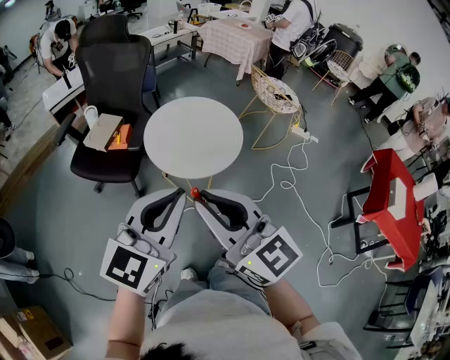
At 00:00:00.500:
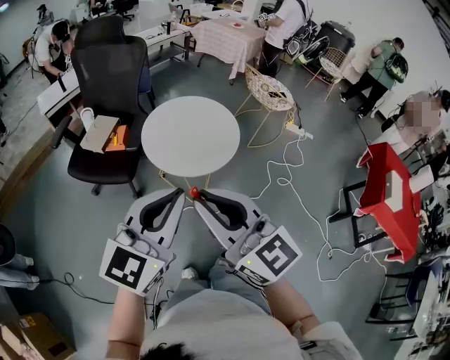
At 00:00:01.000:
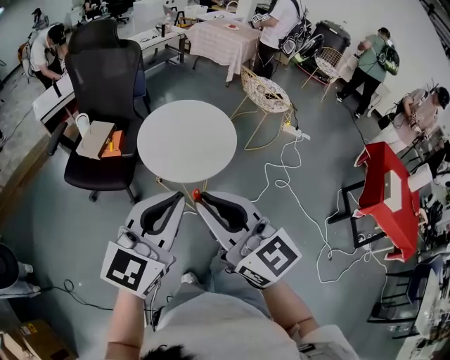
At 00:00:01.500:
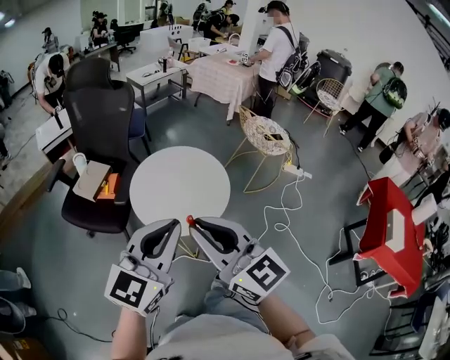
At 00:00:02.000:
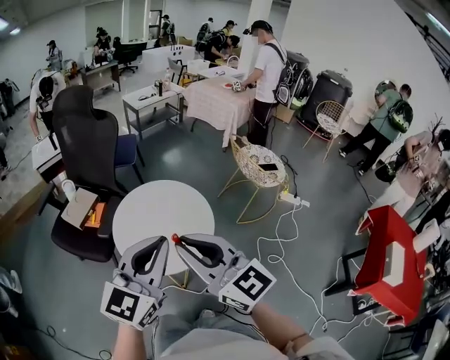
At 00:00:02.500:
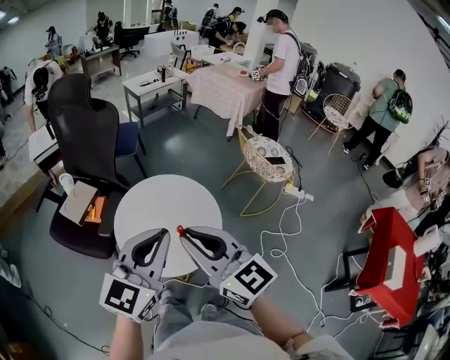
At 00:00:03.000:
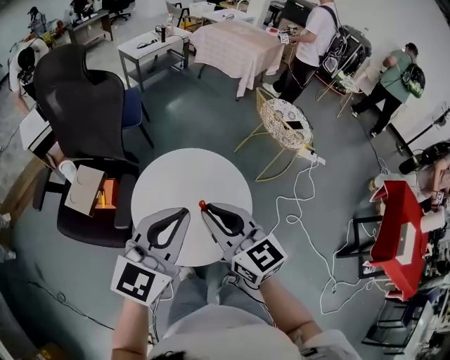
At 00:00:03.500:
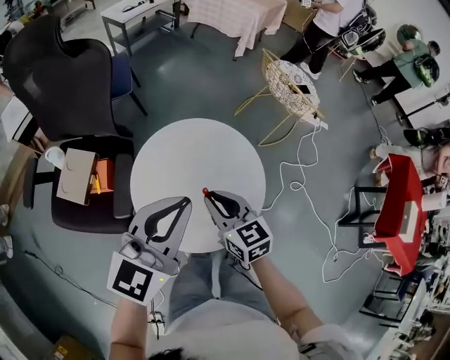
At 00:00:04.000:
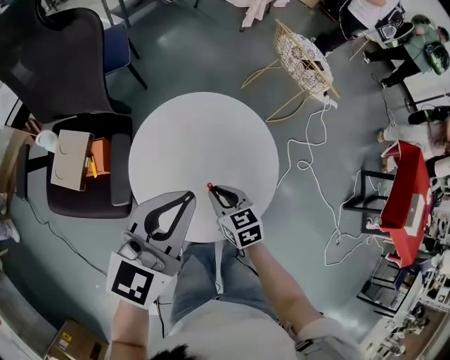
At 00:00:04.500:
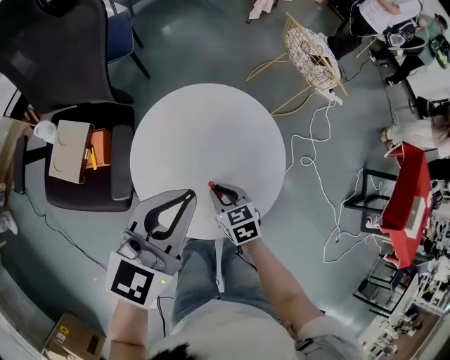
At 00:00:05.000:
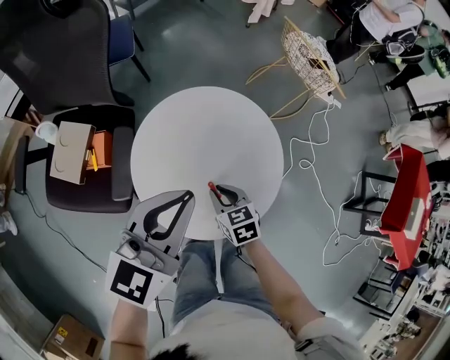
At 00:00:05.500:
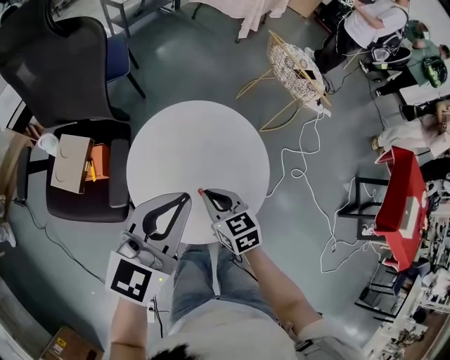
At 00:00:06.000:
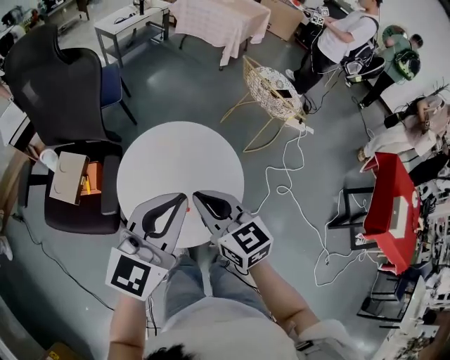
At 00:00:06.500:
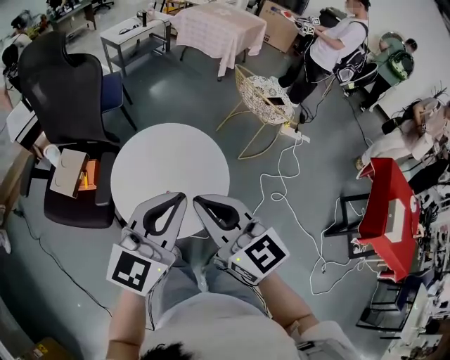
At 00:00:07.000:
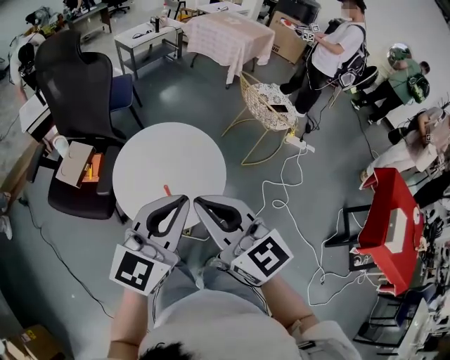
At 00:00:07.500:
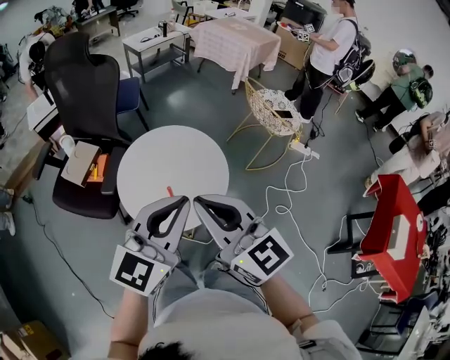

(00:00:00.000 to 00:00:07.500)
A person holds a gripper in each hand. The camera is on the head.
00:00:00.000 - 00:00:02.000: Both grippers travel together forward and to the right, roughly 25 cm.
00:00:02.000 - 00:00:04.000: The left gripper travels forward, downward and to the left by about 25 cm, and rotates roughly 20 degrees. The right gripper shifts about 40 cm downward and forward, and points its fingers roughly 50 degrees further downward.
00:00:04.000 - 00:00:05.500: The right gripper goes some 5 cm upward.
00:00:05.500 - 00:00:07.500: The left gripper travels backward, to the right and upward by about 20 cm, while the right gripper heads upward and backward, covering approximately 35 cm, and tips its fingers upward by roughly 40 degrees.

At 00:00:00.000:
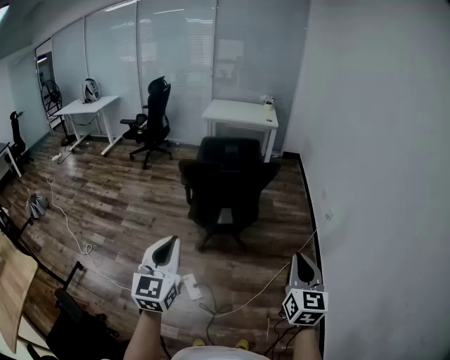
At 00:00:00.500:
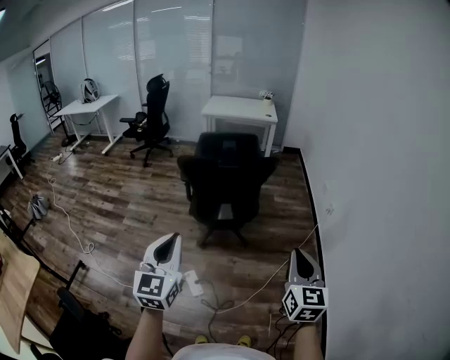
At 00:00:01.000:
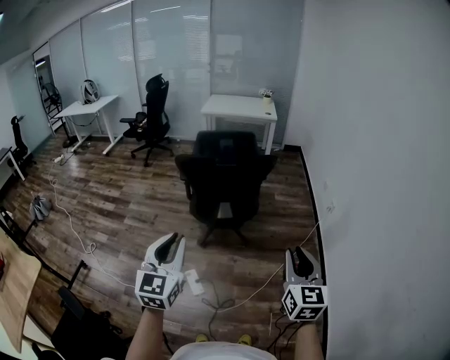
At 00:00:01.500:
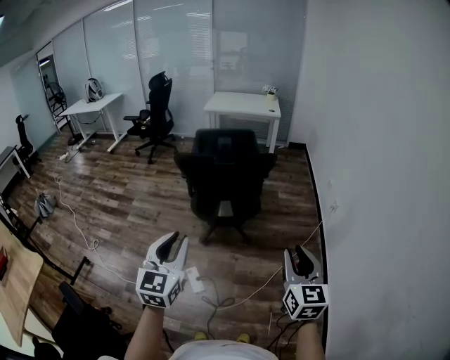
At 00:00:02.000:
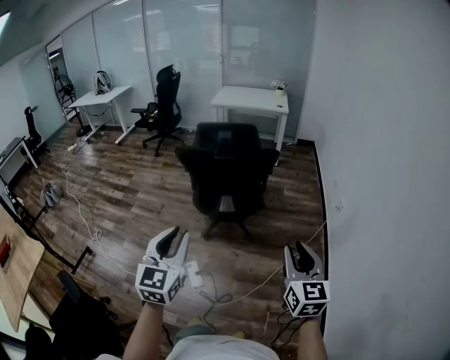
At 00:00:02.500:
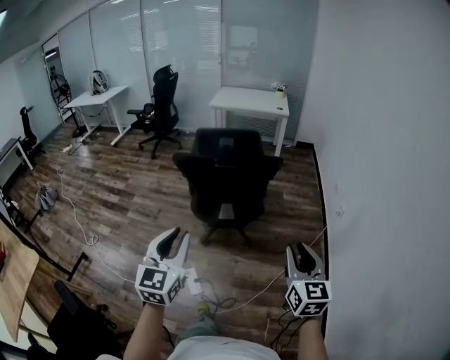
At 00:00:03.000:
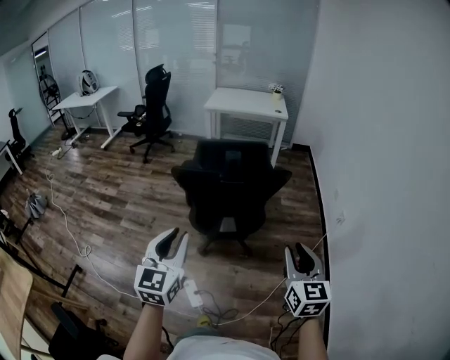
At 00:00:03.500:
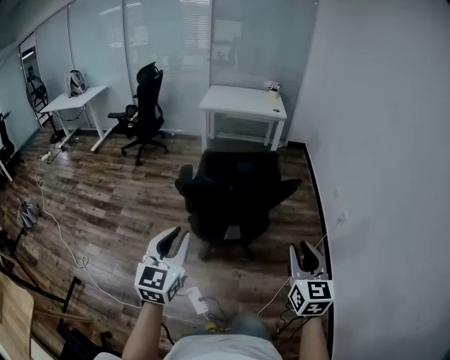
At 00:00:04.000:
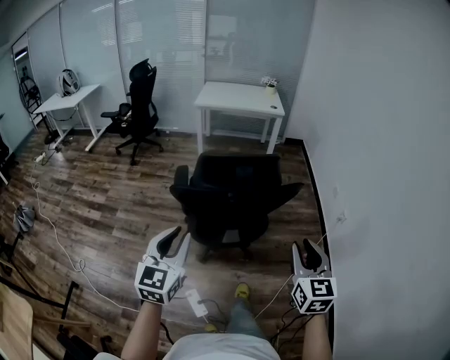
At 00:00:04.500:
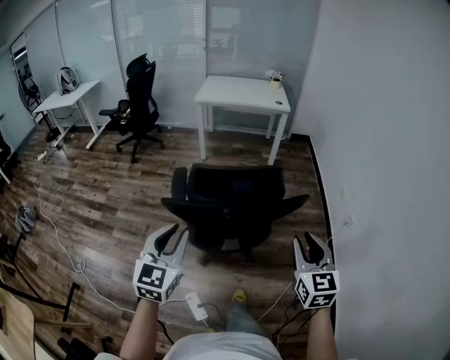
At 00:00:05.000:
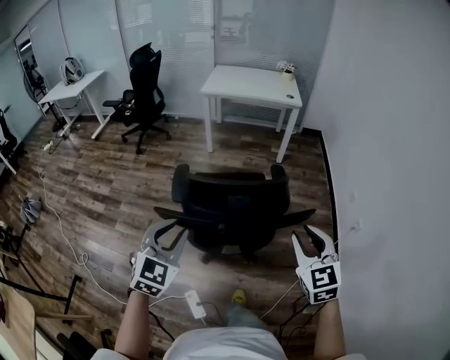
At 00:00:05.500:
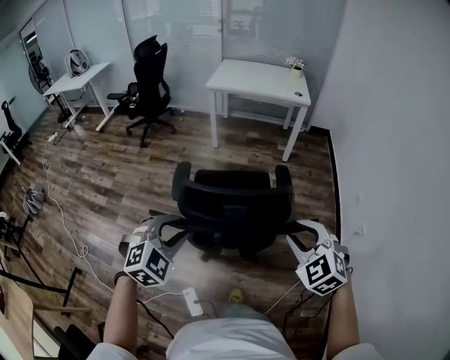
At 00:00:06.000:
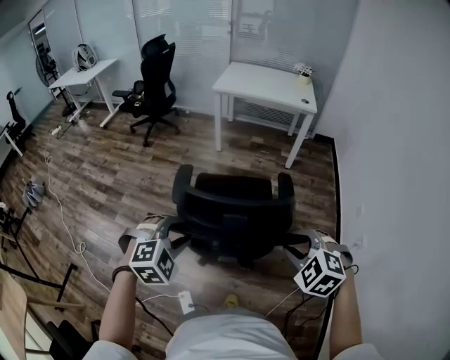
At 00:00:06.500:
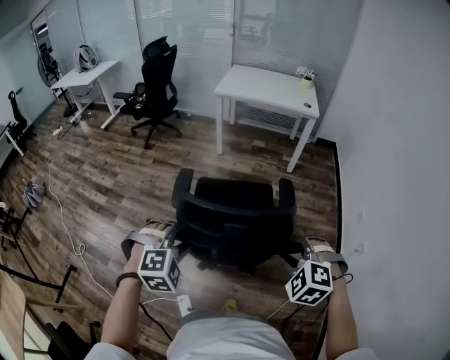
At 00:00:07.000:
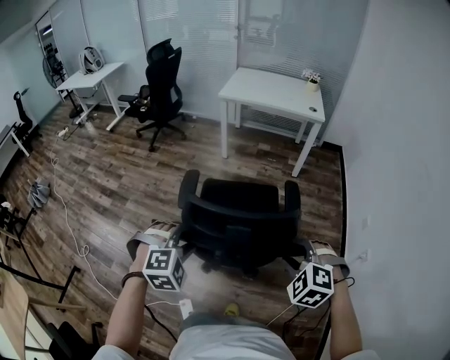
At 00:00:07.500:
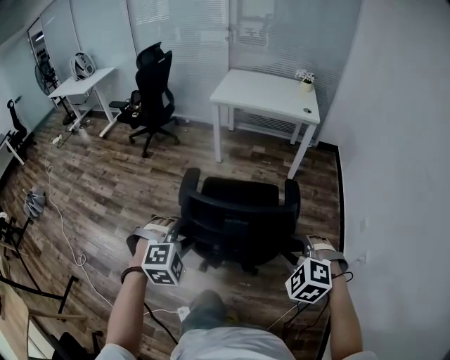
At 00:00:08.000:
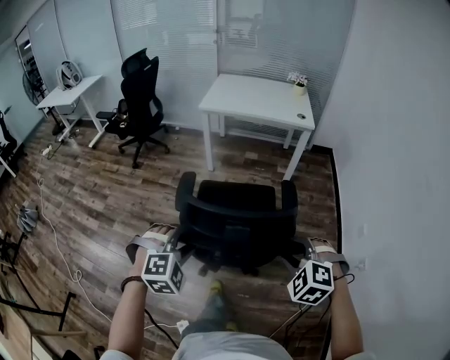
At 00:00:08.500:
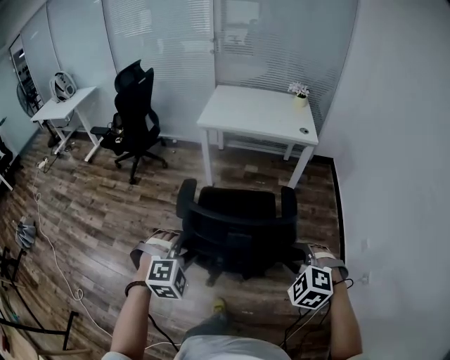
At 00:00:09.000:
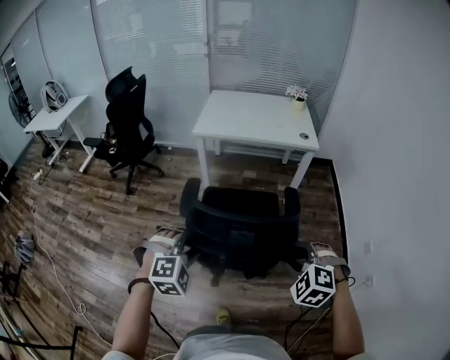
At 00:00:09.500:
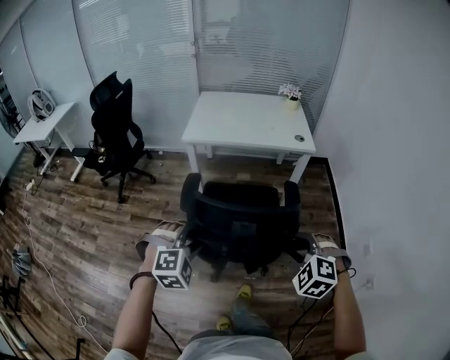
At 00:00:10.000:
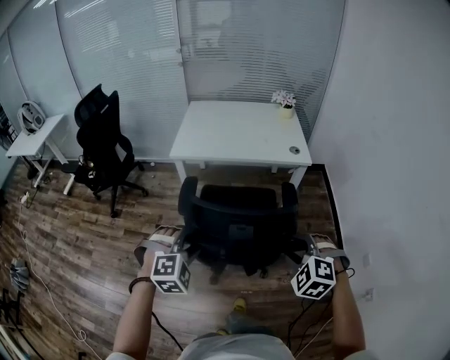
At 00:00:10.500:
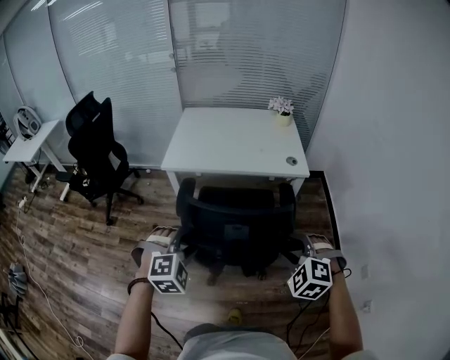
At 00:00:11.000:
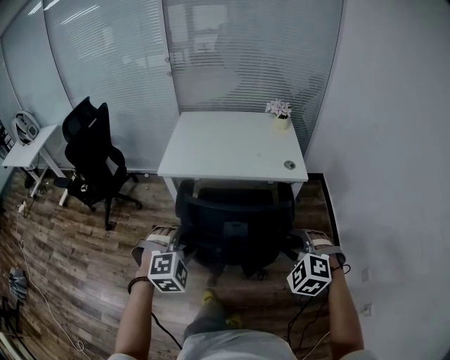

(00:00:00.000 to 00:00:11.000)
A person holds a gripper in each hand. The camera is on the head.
00:00:00.000 - 00:00:02.000: Both grippers move to the right, about 10 cm. The right gripper opens its fingers.
00:00:02.000 - 00:00:03.500: Both grippers move forward and to the left, roughly 30 cm.
00:00:03.500 - 00:00:05.500: The grippers both shift forward by roughly 30 cm. The right gripper rotates approximately 60 degrees; the left gripper tips its fingers downward by approximately 30 degrees.
00:00:05.500 - 00:00:07.500: The right gripper travels forward and downward by roughly 15 cm, and turns by approximately 20 degrees; the left gripper is displaced forward by some 15 cm, and swivels roughly 20 degrees.
00:00:07.500 - 00:00:09.000: Both grippers travel together forward, some 30 cm.
00:00:09.000 - 00:00:11.000: Both grippers move forward, approximately 35 cm.

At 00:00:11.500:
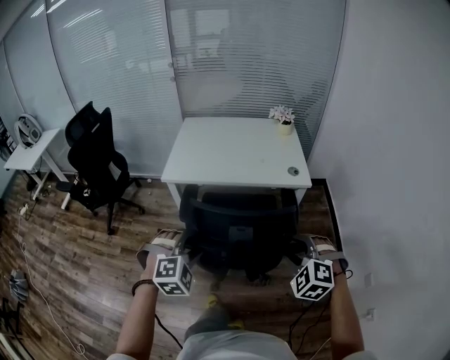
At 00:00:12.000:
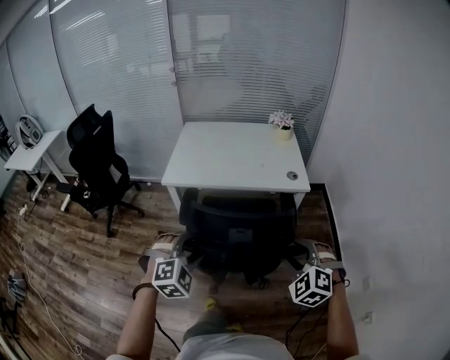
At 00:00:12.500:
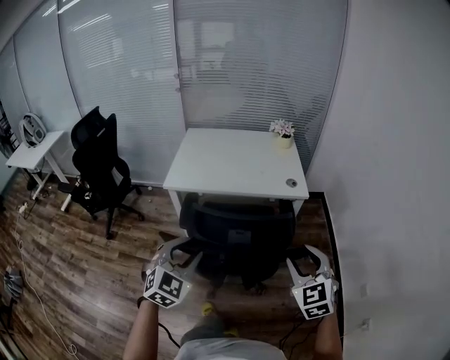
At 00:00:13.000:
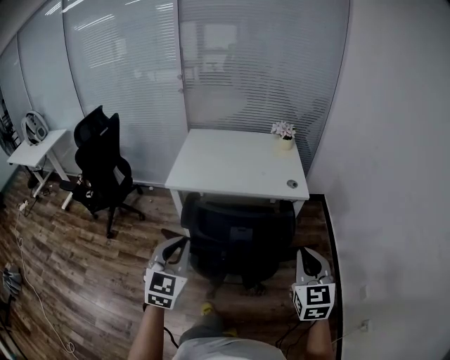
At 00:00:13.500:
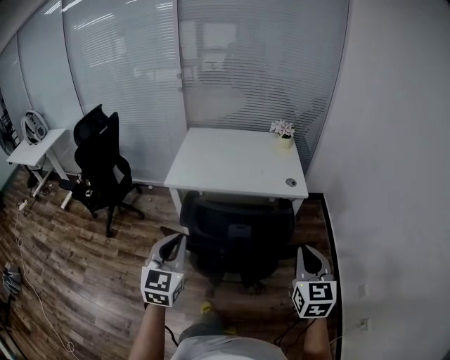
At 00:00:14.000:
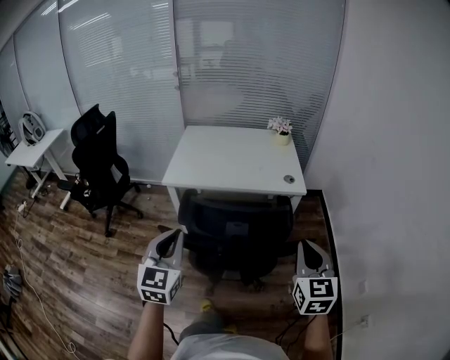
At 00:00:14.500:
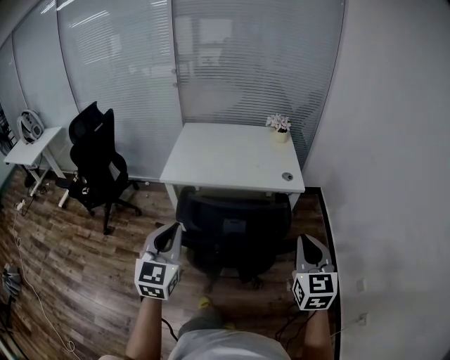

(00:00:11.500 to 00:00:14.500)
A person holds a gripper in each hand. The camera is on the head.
00:00:11.500 - 00:00:13.000: The two grippers go some 10 cm upward. The left gripper twists some 50 degrees counterclockwise, seen from behind, and closes its fingers, while the right gripper rotates around the line of its fingers by roughly 50 degrees, clockwise from behind, and closes.
00:00:13.000 - 00:00:14.500: The grippers move only a little.

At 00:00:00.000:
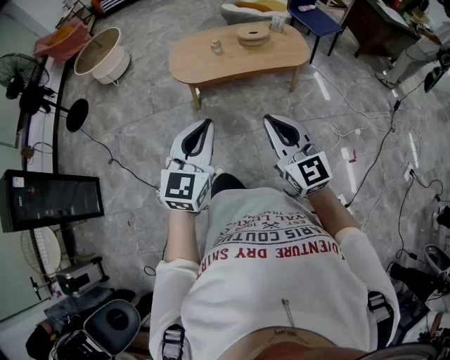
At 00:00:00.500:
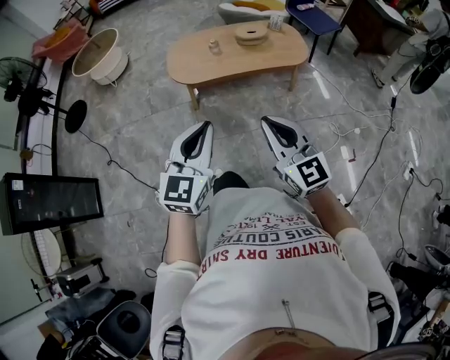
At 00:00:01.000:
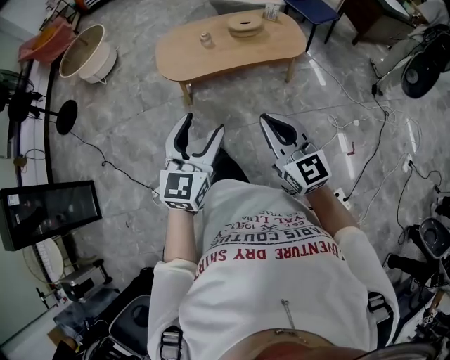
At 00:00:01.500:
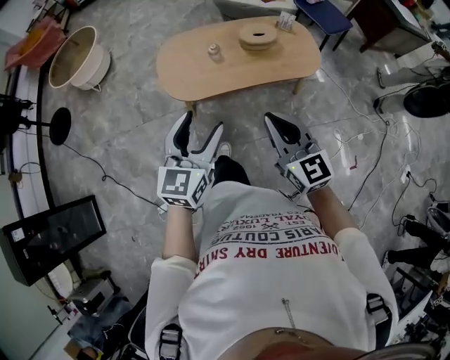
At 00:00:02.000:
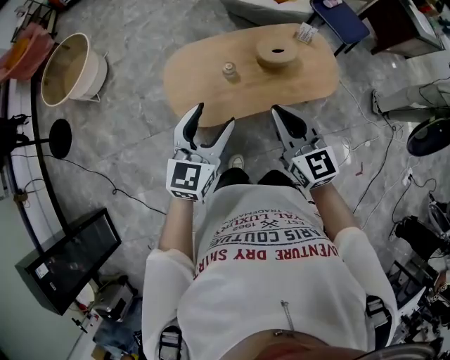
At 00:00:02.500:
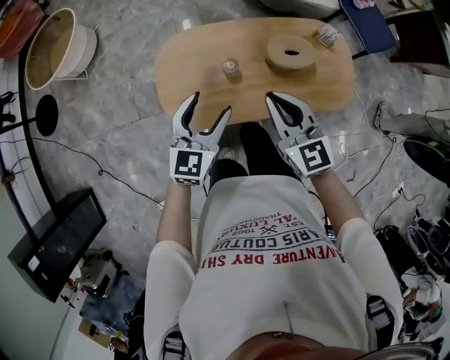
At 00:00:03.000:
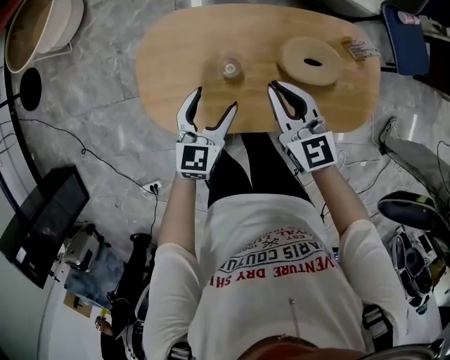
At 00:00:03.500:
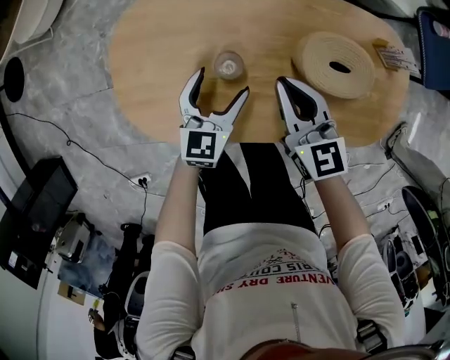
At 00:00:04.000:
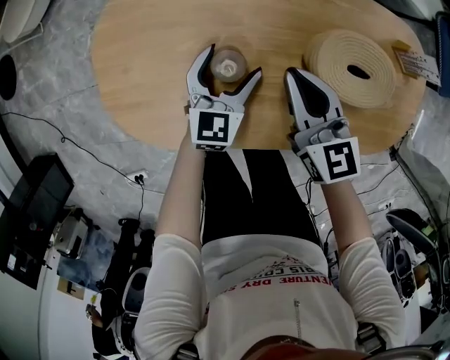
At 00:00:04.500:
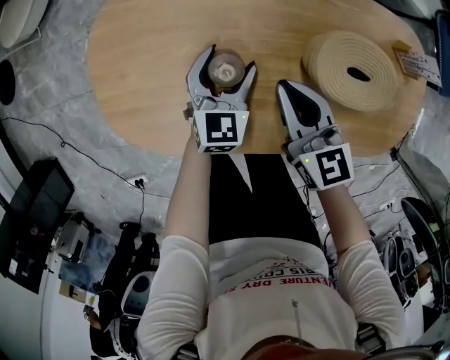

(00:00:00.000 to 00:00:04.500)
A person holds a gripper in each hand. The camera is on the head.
00:00:00.000 - 00:00:02.000: The two grippers travel together, forward, some 50 cm. The left gripper opens its fingers.
00:00:02.000 - 00:00:04.500: Both grippers travel together downward and forward, roughly 60 cm. The right gripper changes its angle by approximately 20 degrees; the left gripper rotates approximately 30 degrees.
